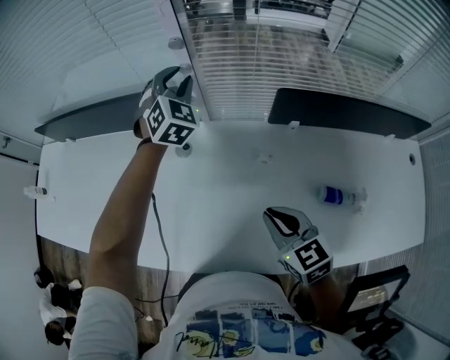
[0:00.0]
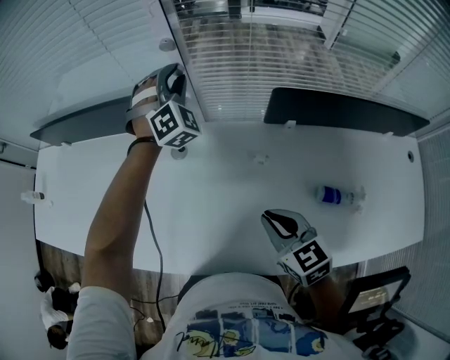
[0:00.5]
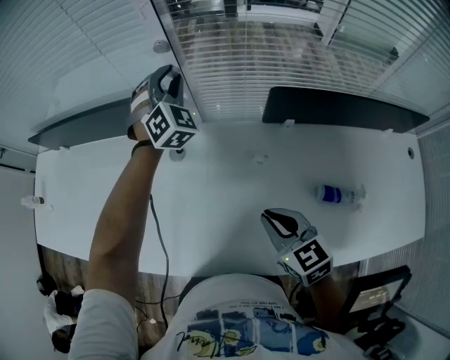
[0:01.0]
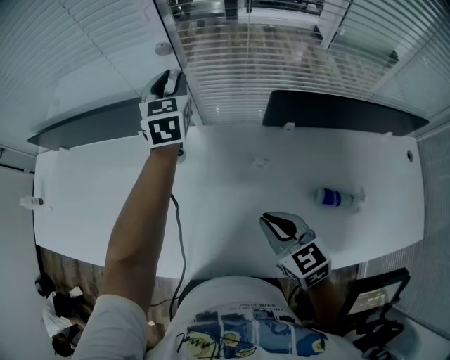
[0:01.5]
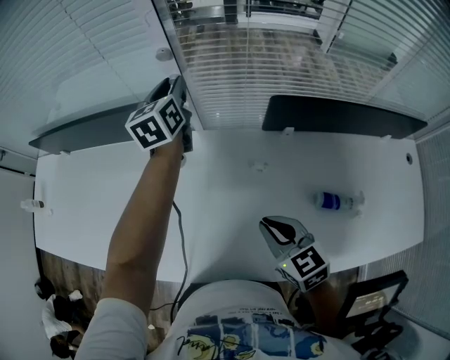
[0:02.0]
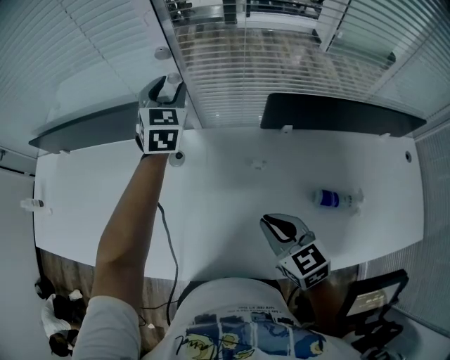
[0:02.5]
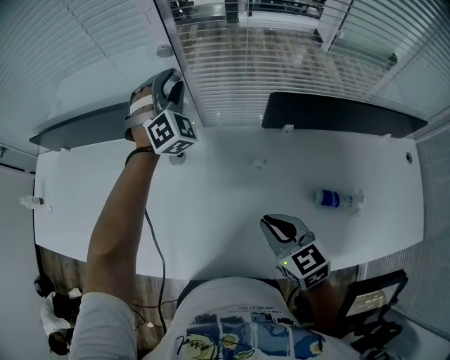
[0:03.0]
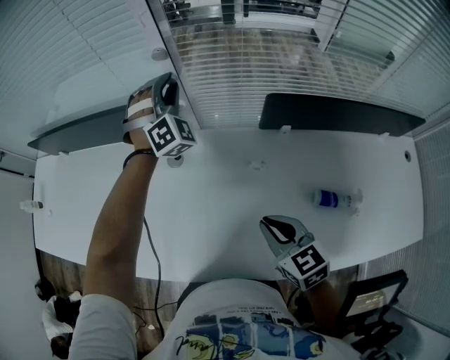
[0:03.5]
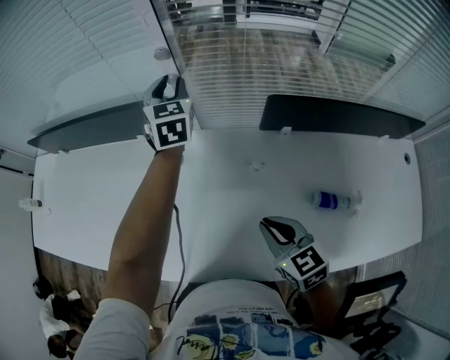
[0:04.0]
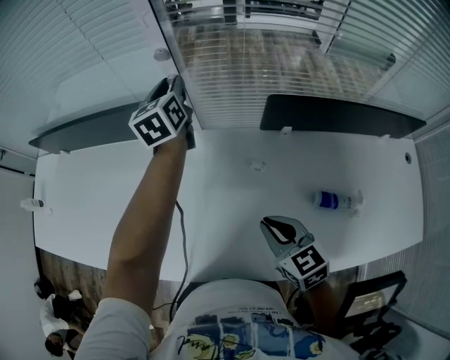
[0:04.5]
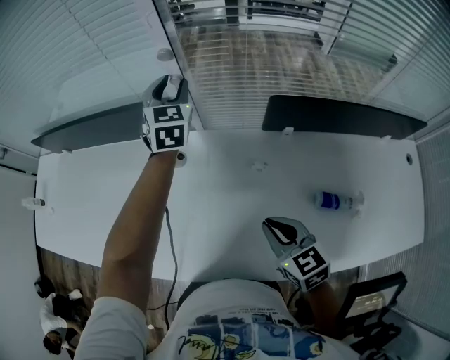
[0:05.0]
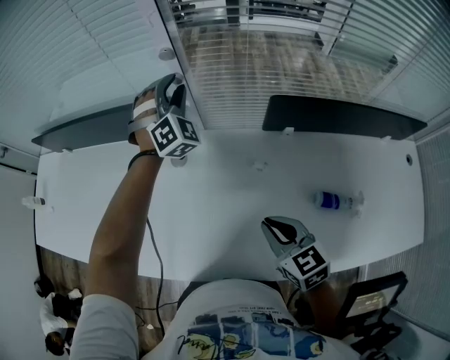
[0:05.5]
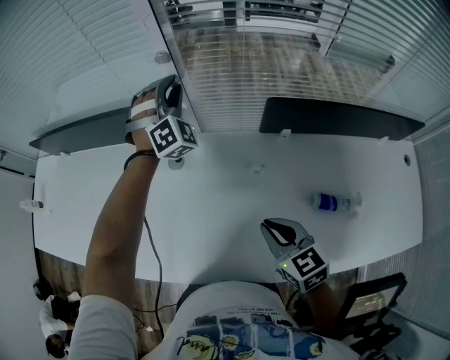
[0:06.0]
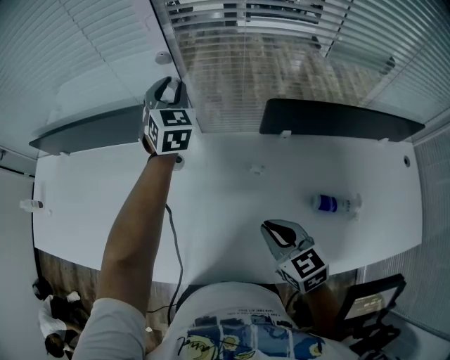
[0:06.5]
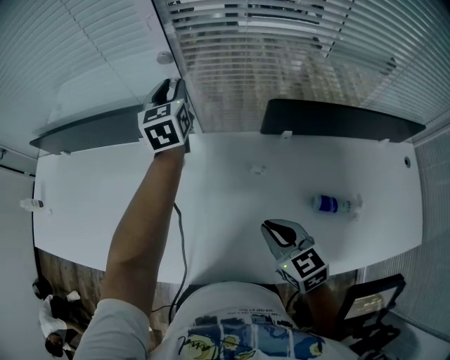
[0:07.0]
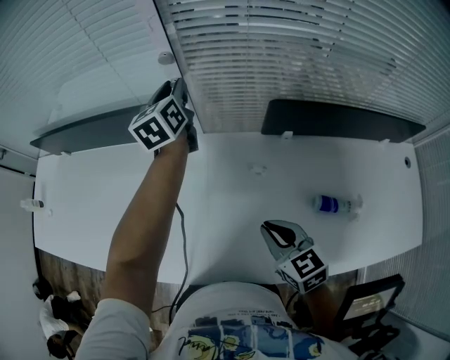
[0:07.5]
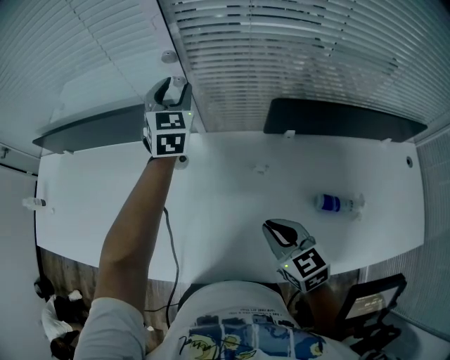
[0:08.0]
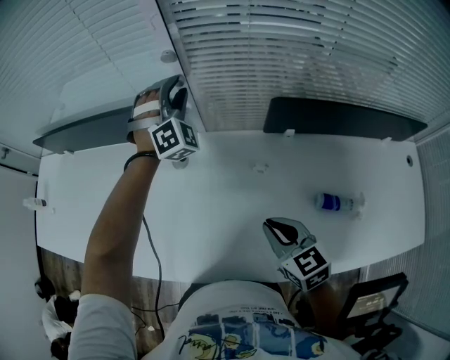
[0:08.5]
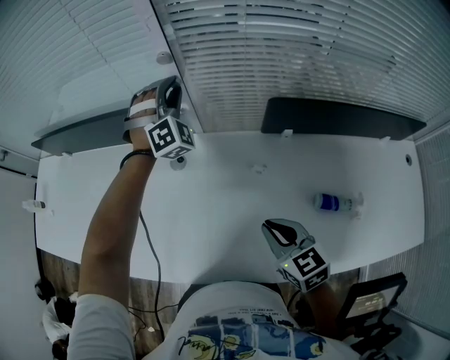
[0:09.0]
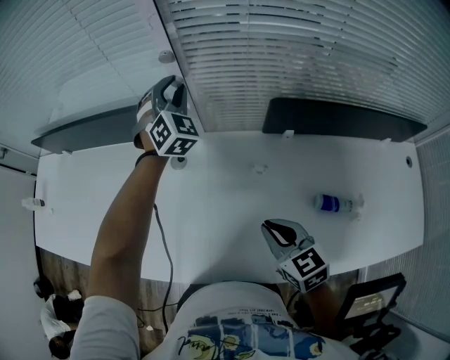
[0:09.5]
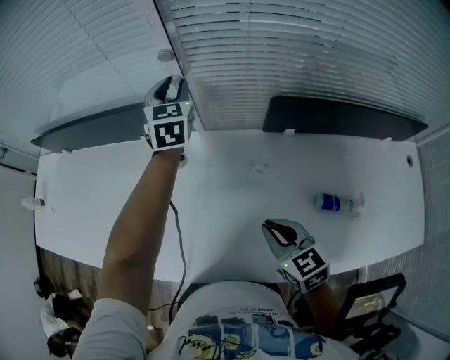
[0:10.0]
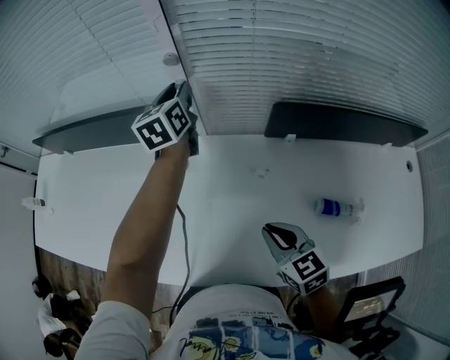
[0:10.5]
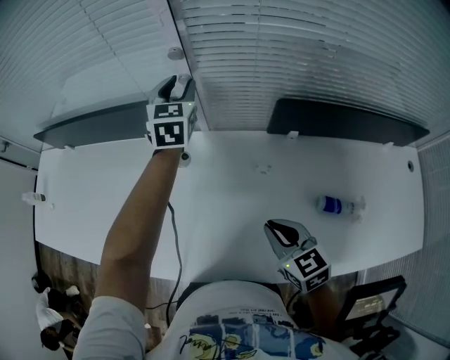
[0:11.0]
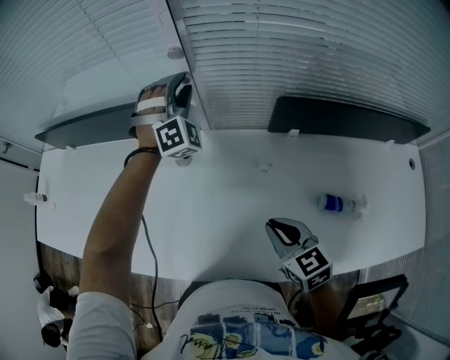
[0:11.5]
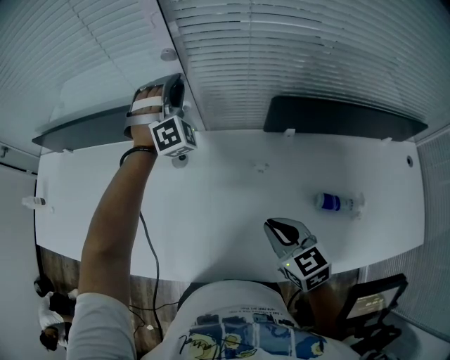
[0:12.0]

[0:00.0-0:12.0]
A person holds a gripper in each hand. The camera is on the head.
0:00.0 to 0:02.0: The left gripper rolls counterclockwise, seen from behind, by some 60 degrees.
0:02.0 to 0:04.0: The left gripper changes its angle by roughly 30 degrees.
0:04.0 to 0:06.0: The left gripper twists about 60 degrees clockwise, seen from behind.
0:06.0 to 0:08.0: The left gripper twists approximately 50 degrees counterclockwise, seen from behind.
0:10.0 to 0:12.0: The left gripper rotates around the line of its fingers by roughly 70 degrees, clockwise from behind.

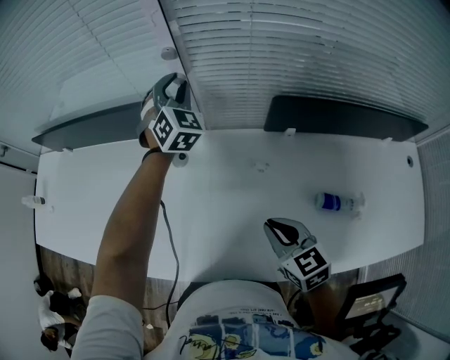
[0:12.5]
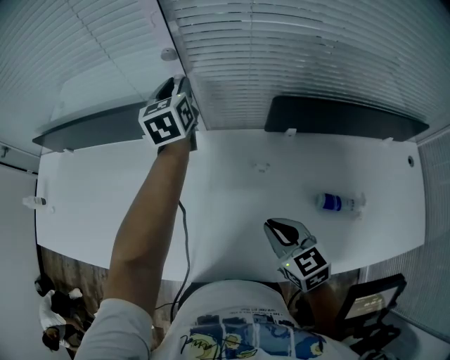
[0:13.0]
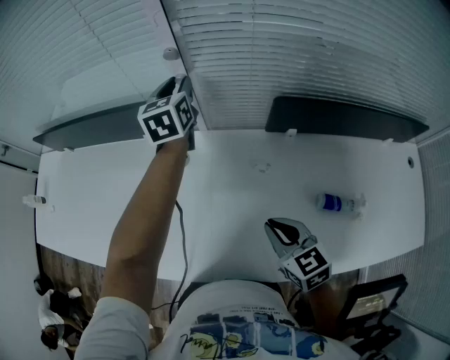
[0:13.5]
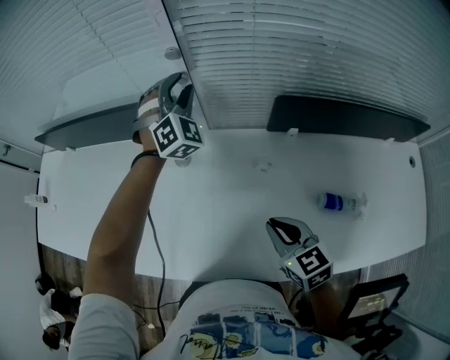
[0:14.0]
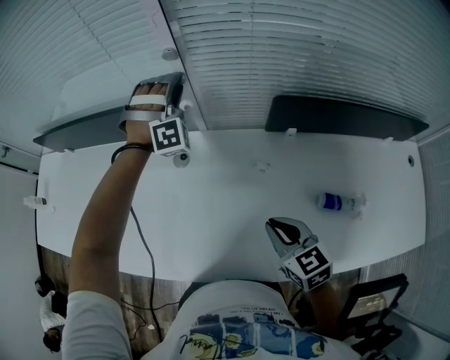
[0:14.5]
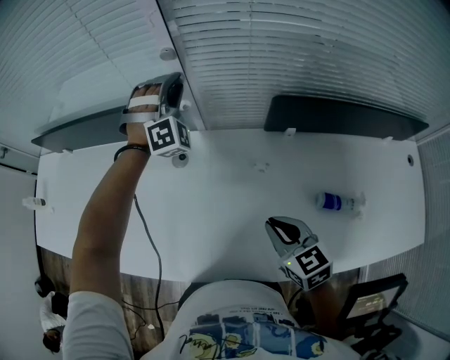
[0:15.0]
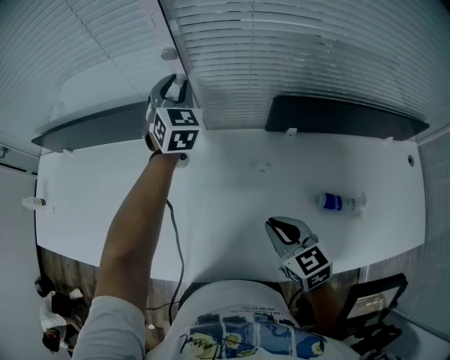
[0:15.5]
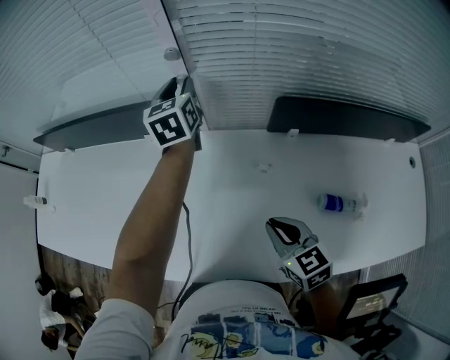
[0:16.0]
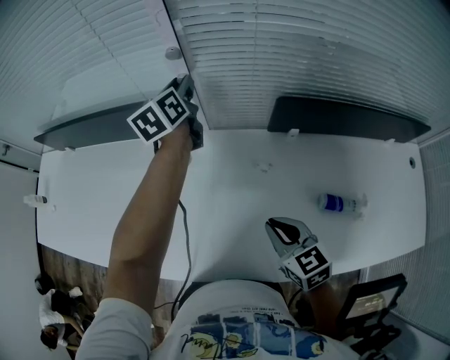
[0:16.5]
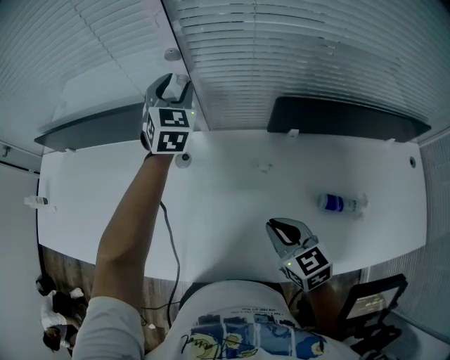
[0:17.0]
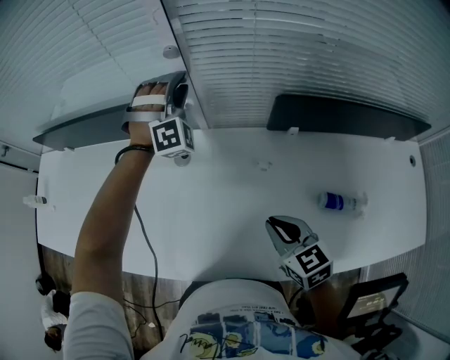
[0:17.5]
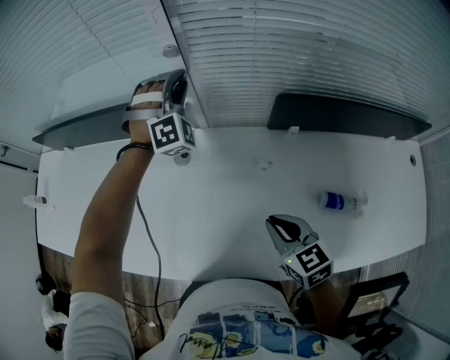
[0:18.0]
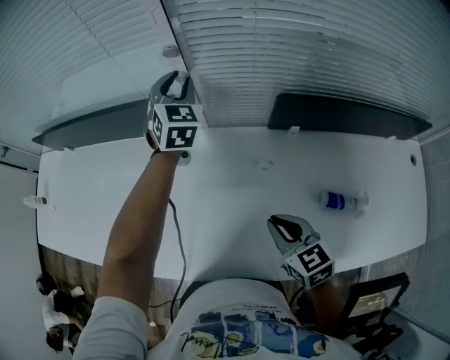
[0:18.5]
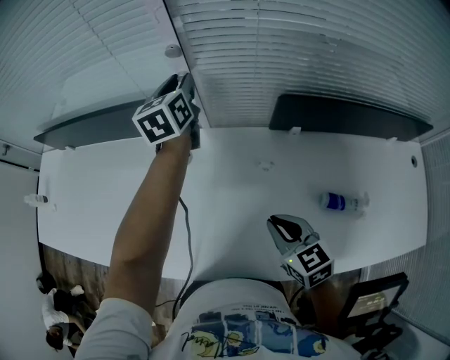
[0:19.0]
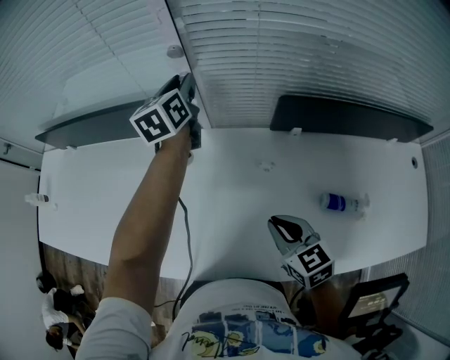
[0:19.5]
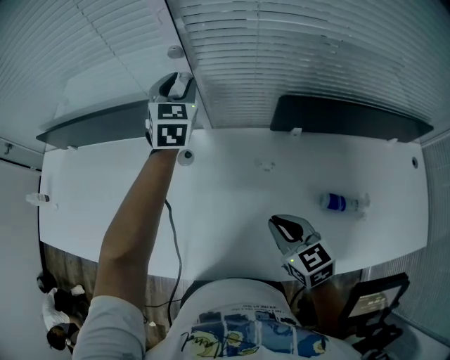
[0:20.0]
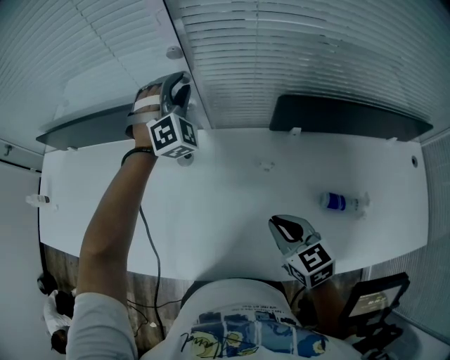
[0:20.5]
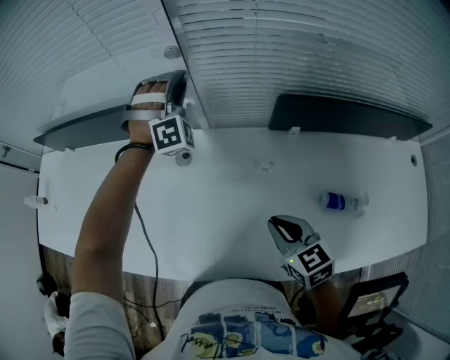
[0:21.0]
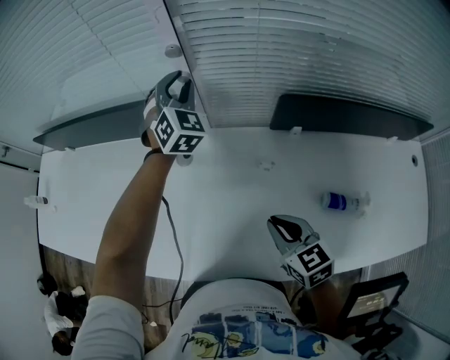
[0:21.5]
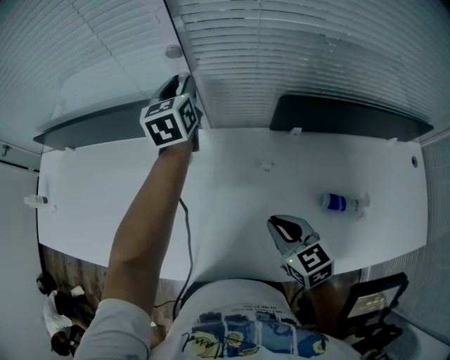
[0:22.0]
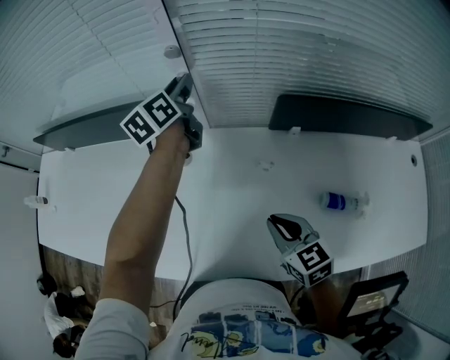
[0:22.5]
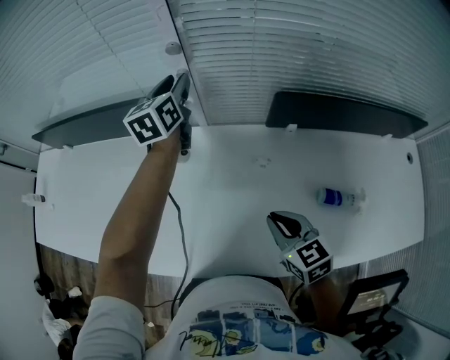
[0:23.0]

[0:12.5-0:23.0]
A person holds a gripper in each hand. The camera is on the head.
0:12.5 to 0:14.5: The left gripper twists about 50 degrees clockwise, seen from behind.
0:14.5 to 0:16.5: The left gripper rotates around the line of its fingers by some 120 degrees, counterclockwise from behind.
0:19.0 to 0:21.0: The left gripper rotates around the line of its fingers by about 100 degrees, clockwise from behind.
0:21.0 to 0:23.0: The left gripper twists roughly 100 degrees counterclockwise, seen from behind.

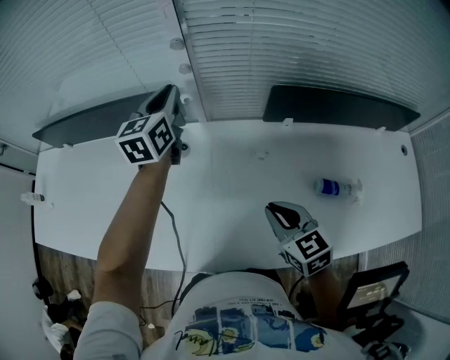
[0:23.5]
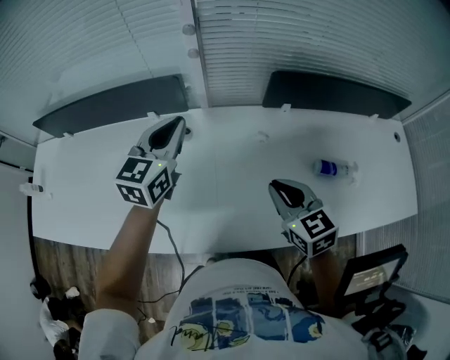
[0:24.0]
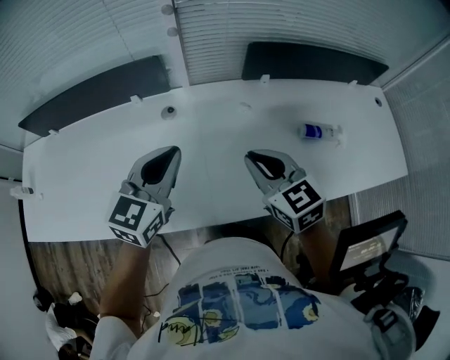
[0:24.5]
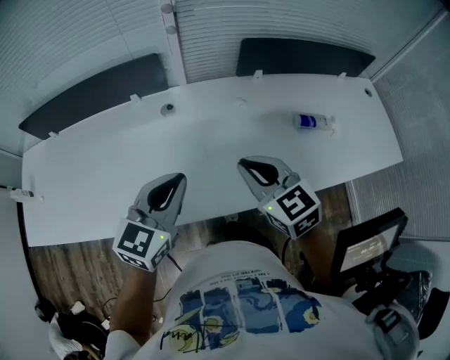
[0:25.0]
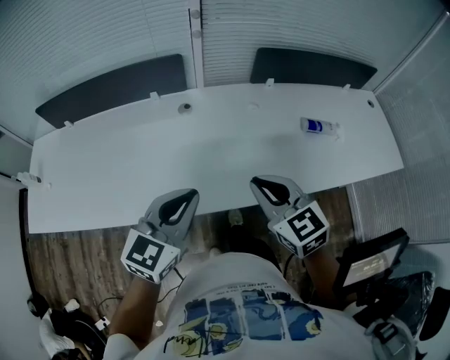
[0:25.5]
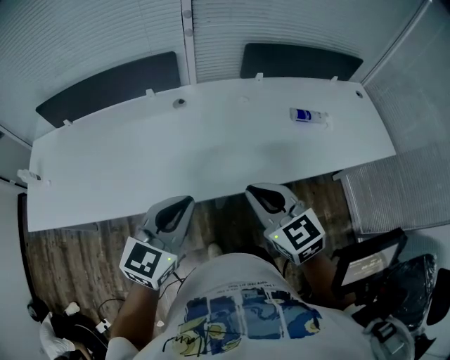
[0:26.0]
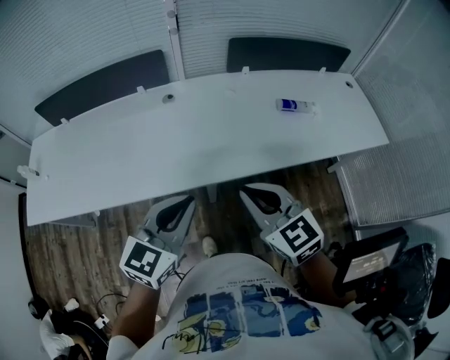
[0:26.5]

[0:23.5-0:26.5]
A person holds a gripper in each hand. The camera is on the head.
0:23.5 to 0:25.0: The left gripper shifts approximately 30 cm backward and to the right, and rotates some 40 degrees.
0:25.0 to 0:26.5: The grippers stay close to where they were, moving slightly.

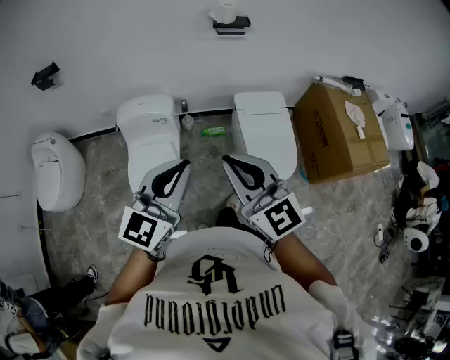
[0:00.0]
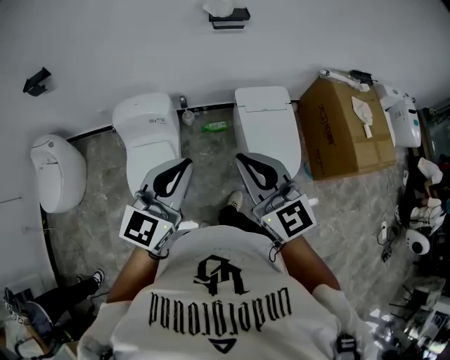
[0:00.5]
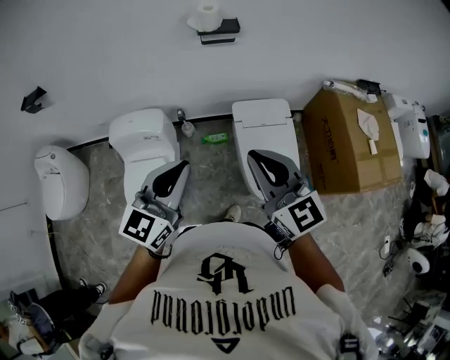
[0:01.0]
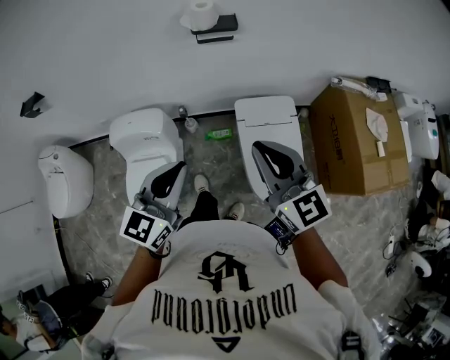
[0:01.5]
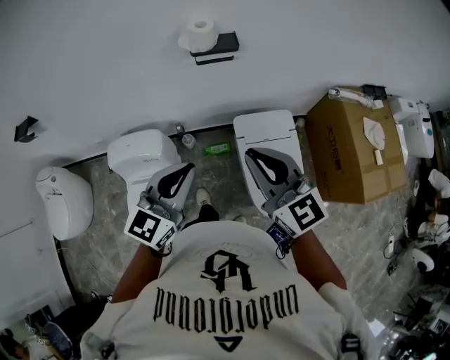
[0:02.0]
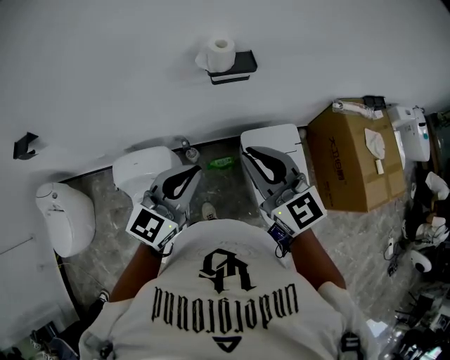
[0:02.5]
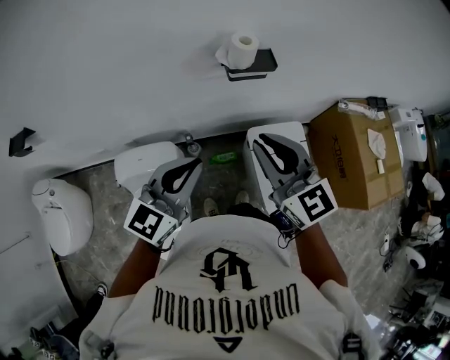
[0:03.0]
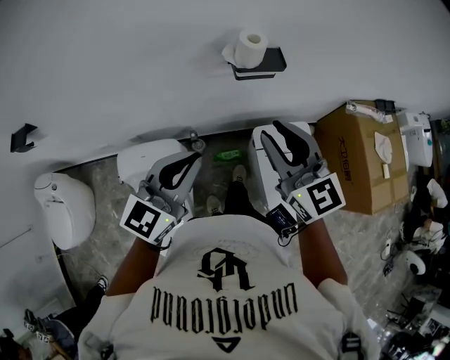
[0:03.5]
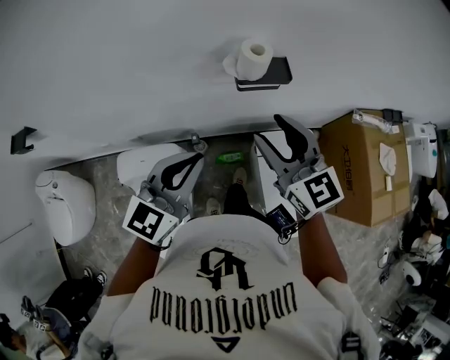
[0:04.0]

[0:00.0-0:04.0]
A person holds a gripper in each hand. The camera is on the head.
0:00.0 to 0:02.0: The right gripper moves forward and to the right, about 35 cm, while the left gripper travels forward by some 30 cm.
0:02.0 to 0:04.0: Both grippers travel together forward and to the left, approximately 20 cm. The right gripper opens up.
